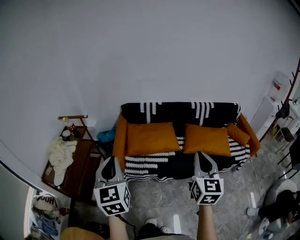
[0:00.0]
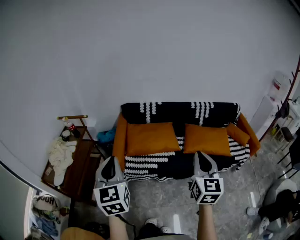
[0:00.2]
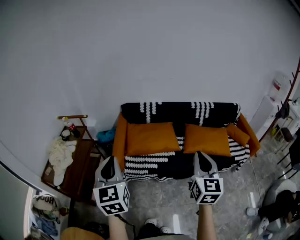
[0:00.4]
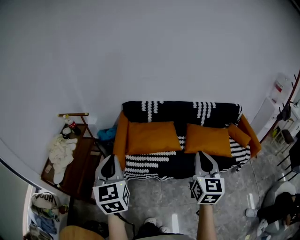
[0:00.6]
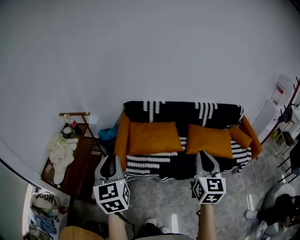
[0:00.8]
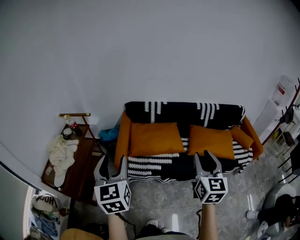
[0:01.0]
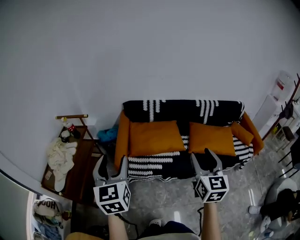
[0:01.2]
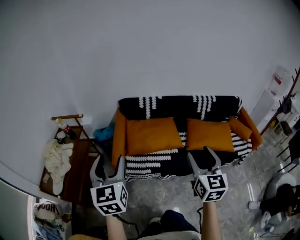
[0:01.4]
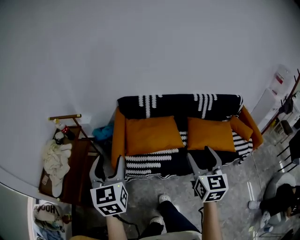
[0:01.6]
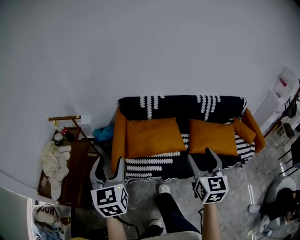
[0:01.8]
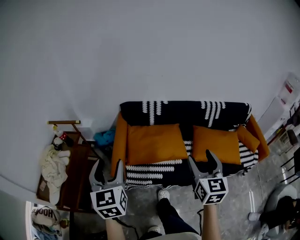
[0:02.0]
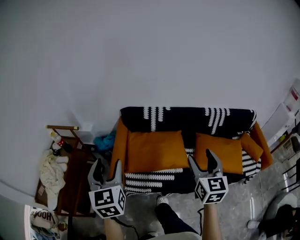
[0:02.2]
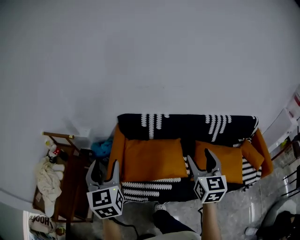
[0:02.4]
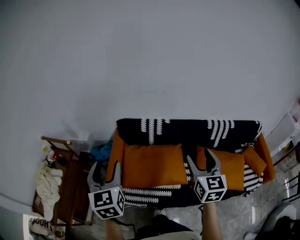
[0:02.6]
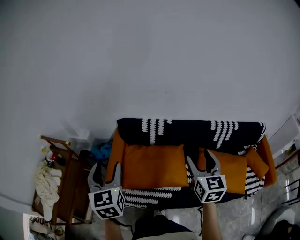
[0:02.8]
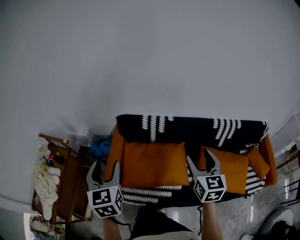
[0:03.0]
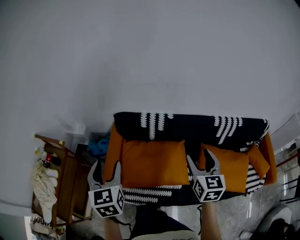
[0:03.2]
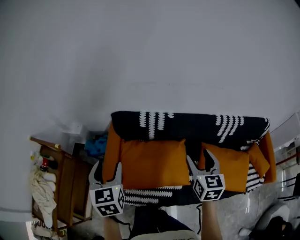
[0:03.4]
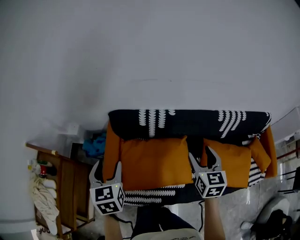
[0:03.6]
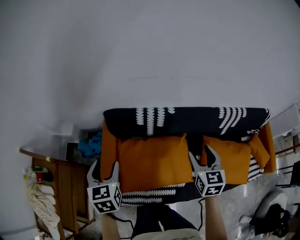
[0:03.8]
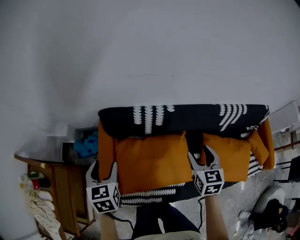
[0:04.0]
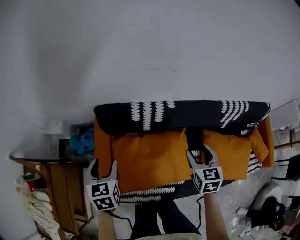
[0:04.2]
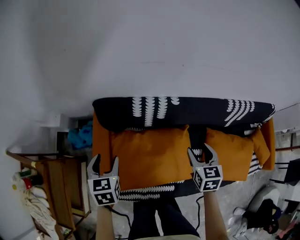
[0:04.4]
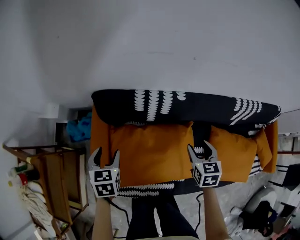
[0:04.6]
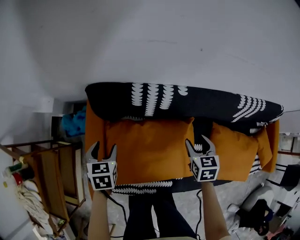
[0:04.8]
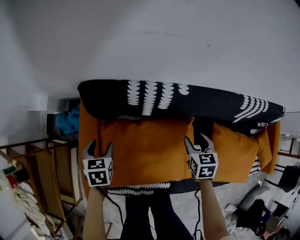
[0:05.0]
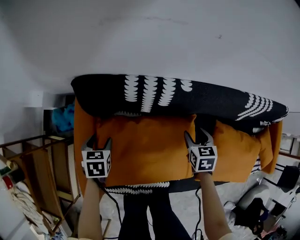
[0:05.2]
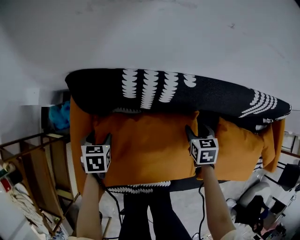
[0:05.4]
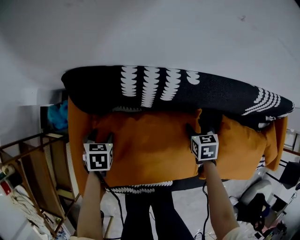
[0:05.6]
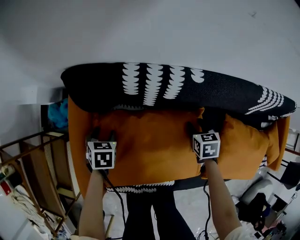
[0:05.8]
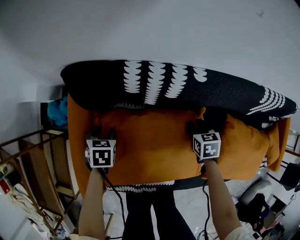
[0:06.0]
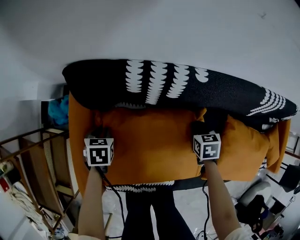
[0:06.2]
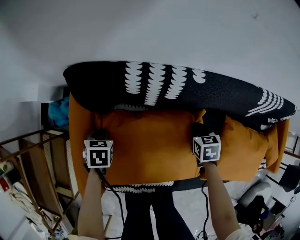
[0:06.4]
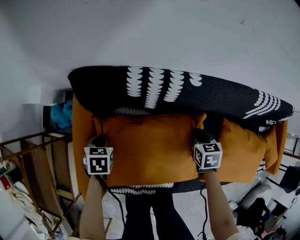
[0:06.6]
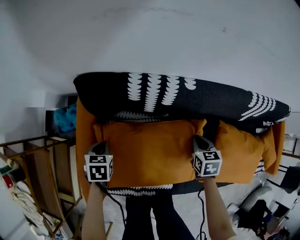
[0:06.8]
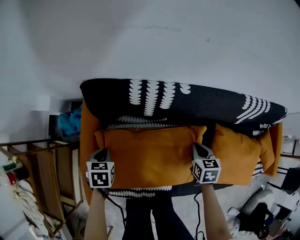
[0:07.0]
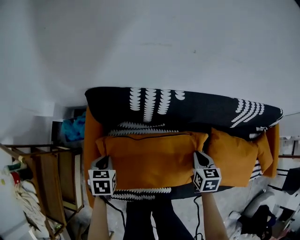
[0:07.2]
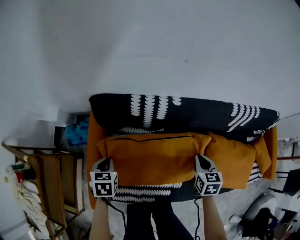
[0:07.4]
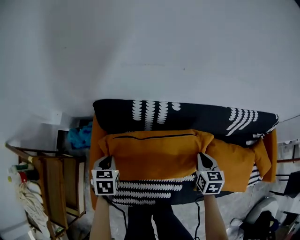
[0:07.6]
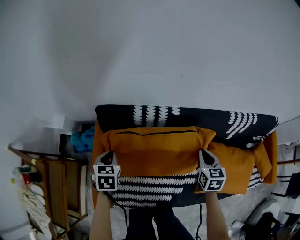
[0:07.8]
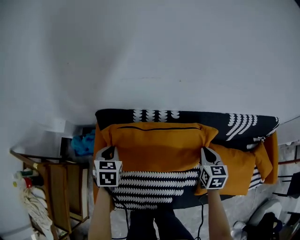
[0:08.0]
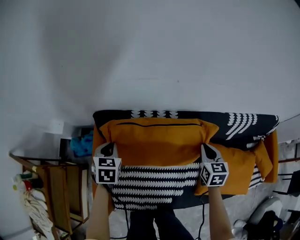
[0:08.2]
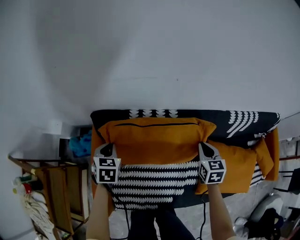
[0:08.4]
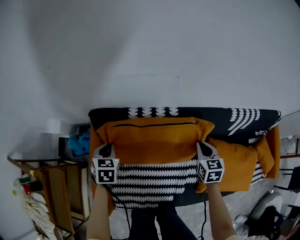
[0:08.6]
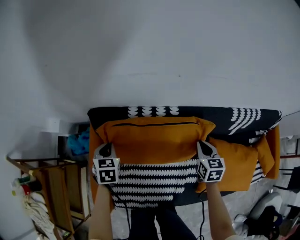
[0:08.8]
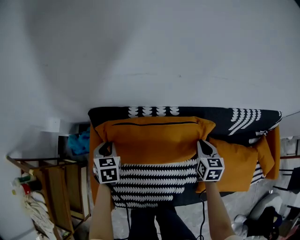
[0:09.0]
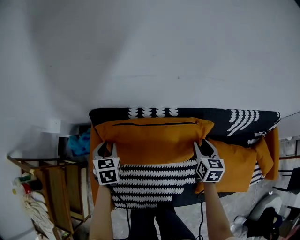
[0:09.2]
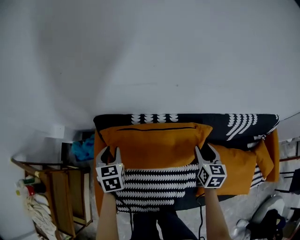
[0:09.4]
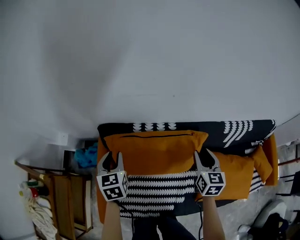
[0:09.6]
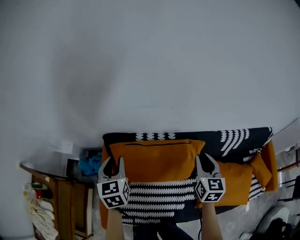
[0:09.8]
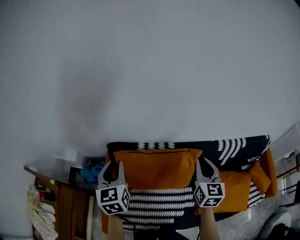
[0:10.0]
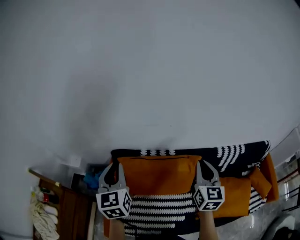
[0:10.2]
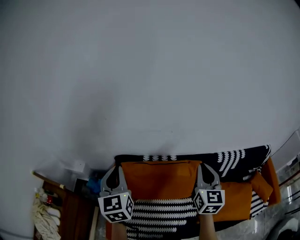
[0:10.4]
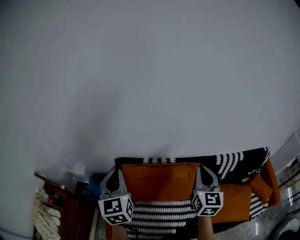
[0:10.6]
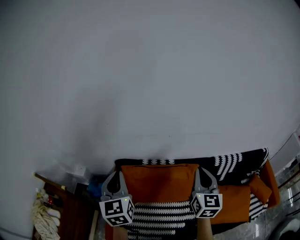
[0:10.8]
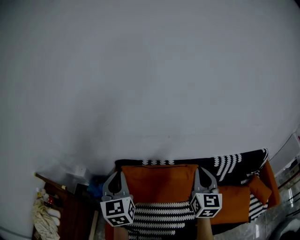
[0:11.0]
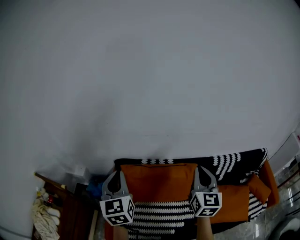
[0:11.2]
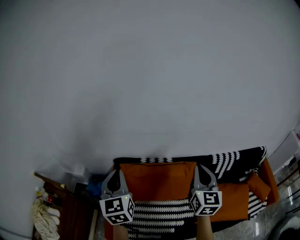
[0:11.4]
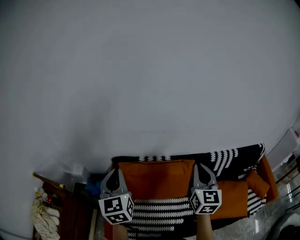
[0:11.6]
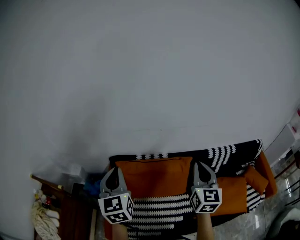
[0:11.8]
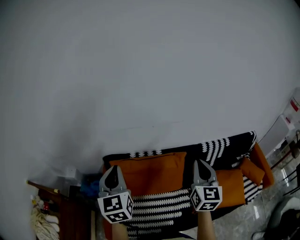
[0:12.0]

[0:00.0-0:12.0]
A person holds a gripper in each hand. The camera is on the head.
0:00.0 to 0:01.6: The two grippers go some 10 cm forward. The right gripper opens up; the left gripper opens up.
0:01.6 to 0:03.0: Both grippers move forward, about 35 cm.
0:03.0 to 0:04.4: Both grippers move downward and forward, roughly 35 cm. The left gripper rotates about 30 degrees, while the right gripper swivels some 30 degrees.
0:04.4 to 0:06.0: The grippers both shift downward by some 30 cm. The right gripper rotates approximately 20 degrees, and closes its fingers; the left gripper rotates roughly 20 degrees.
0:06.0 to 0:07.6: Both grippers move upward, some 25 cm. The left gripper closes up. The right gripper swivels some 20 degrees, and closes.
0:07.6 to 0:09.0: Both grippers move forward, roughly 10 cm.
0:09.0 to 0:10.4: The two grippers go about 35 cm upward. The right gripper angles its fingers upward, by about 30 degrees, and opens, then closes again. Meanwhile the left gripper points its fingers some 40 degrees further upward.
0:10.4 to 0:12.0: The left gripper moves roughly 5 cm. Meanwhile the right gripper heads backward, covering roughly 5 cm.

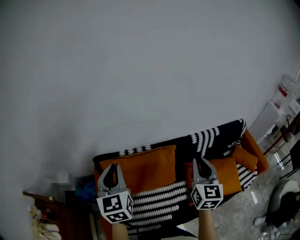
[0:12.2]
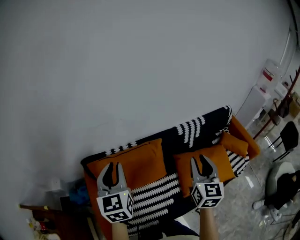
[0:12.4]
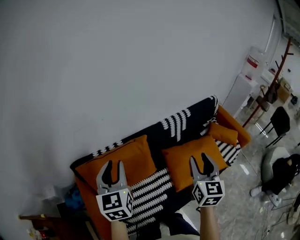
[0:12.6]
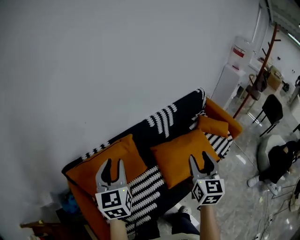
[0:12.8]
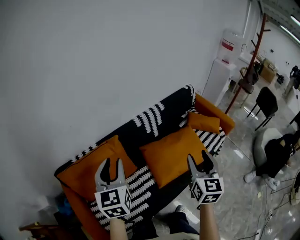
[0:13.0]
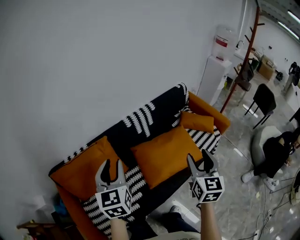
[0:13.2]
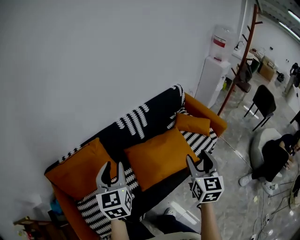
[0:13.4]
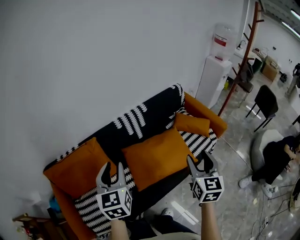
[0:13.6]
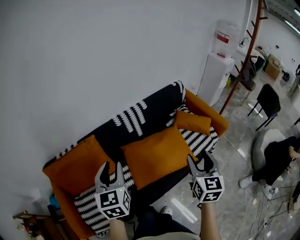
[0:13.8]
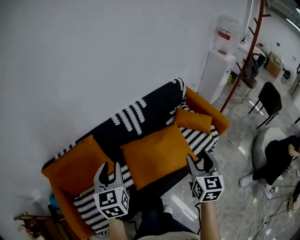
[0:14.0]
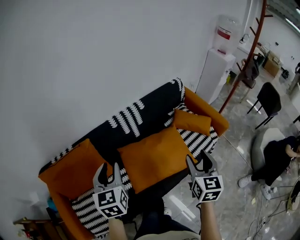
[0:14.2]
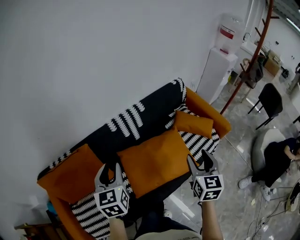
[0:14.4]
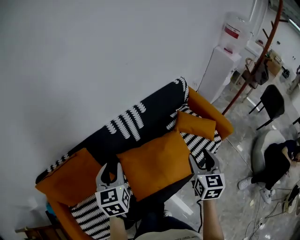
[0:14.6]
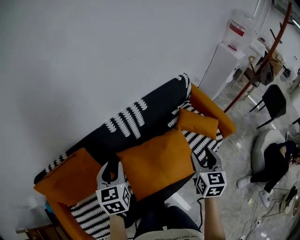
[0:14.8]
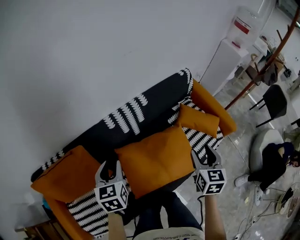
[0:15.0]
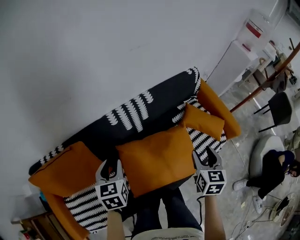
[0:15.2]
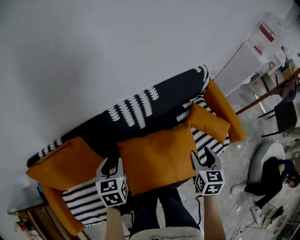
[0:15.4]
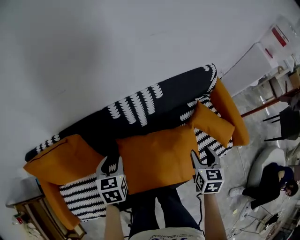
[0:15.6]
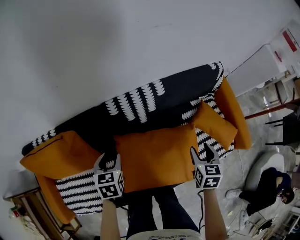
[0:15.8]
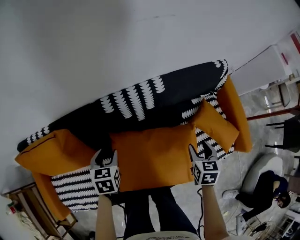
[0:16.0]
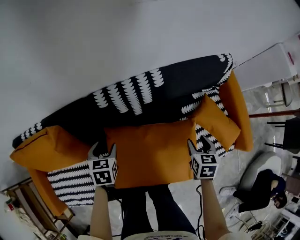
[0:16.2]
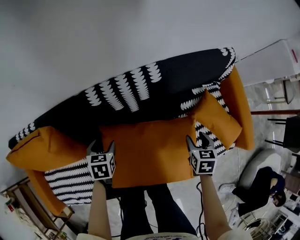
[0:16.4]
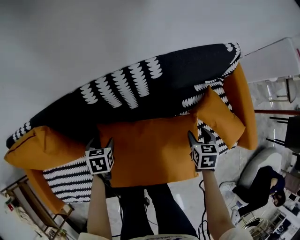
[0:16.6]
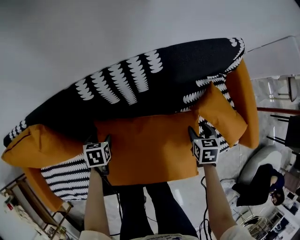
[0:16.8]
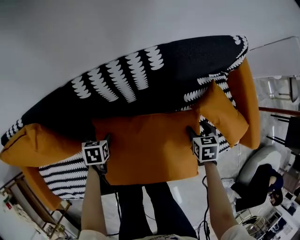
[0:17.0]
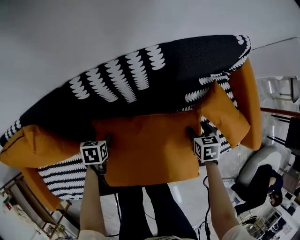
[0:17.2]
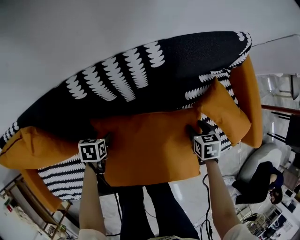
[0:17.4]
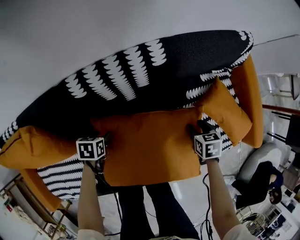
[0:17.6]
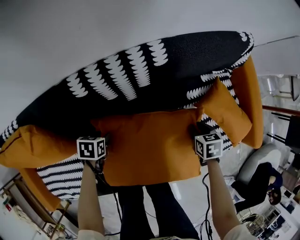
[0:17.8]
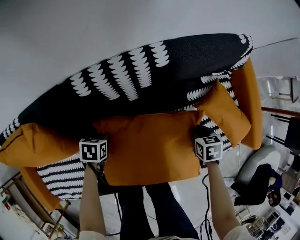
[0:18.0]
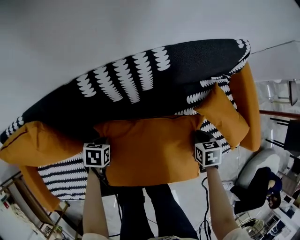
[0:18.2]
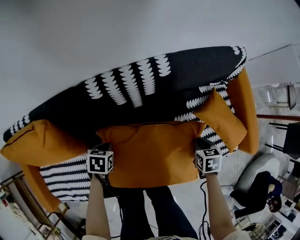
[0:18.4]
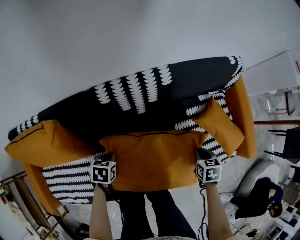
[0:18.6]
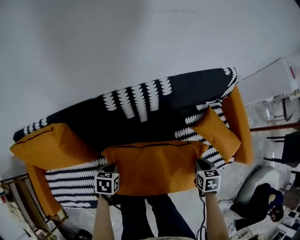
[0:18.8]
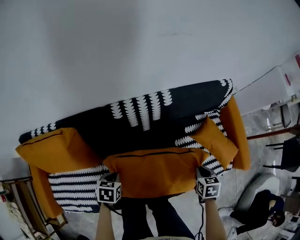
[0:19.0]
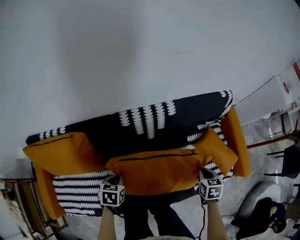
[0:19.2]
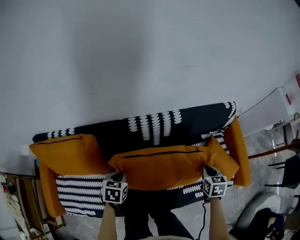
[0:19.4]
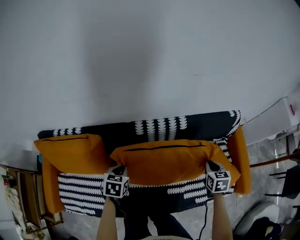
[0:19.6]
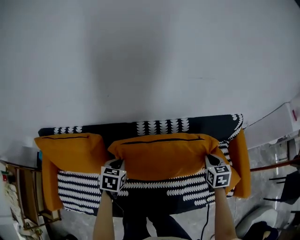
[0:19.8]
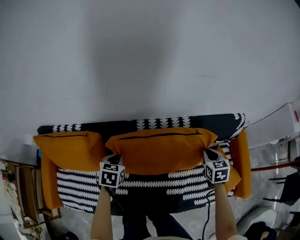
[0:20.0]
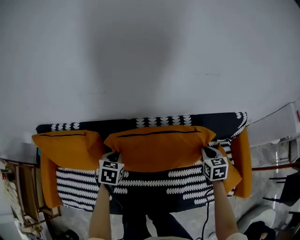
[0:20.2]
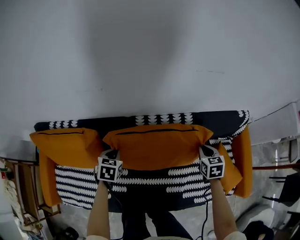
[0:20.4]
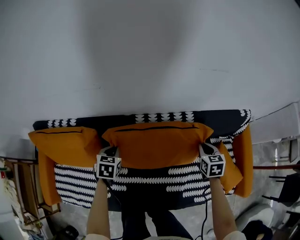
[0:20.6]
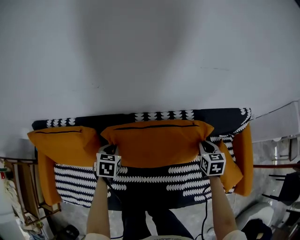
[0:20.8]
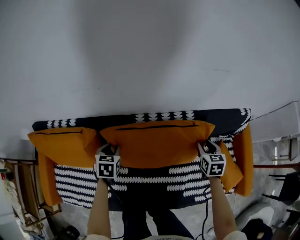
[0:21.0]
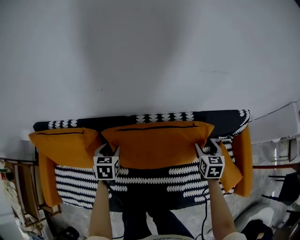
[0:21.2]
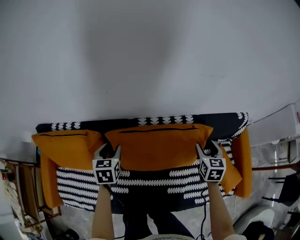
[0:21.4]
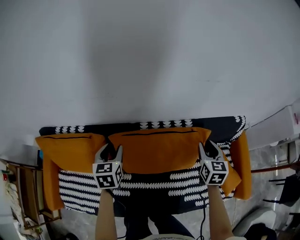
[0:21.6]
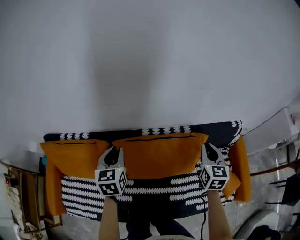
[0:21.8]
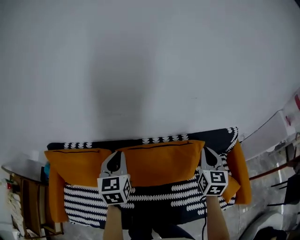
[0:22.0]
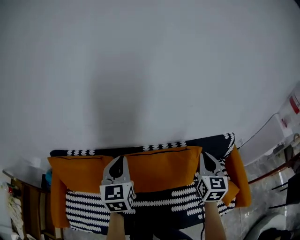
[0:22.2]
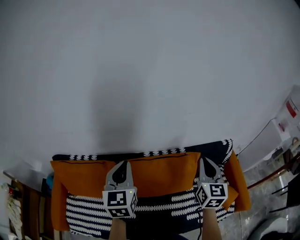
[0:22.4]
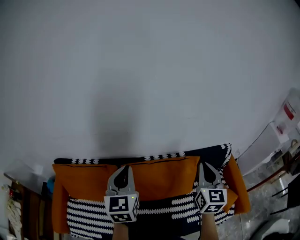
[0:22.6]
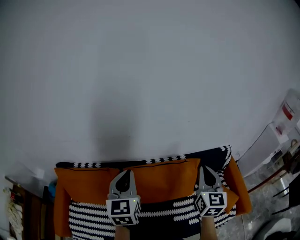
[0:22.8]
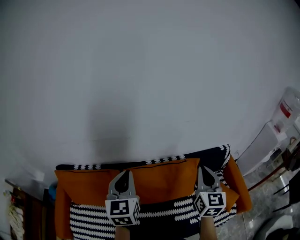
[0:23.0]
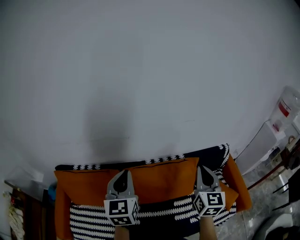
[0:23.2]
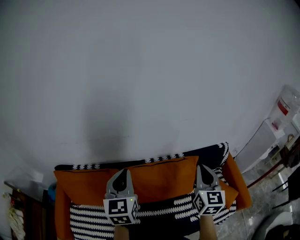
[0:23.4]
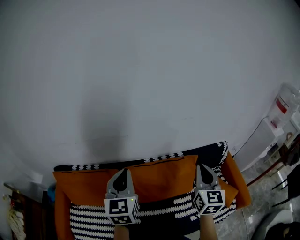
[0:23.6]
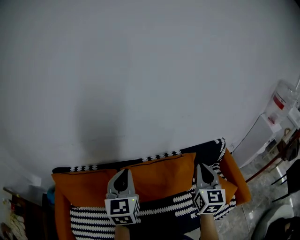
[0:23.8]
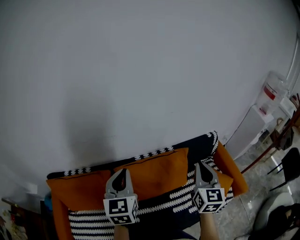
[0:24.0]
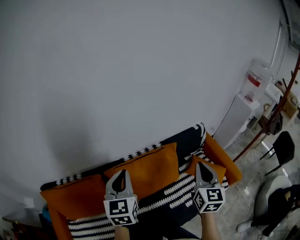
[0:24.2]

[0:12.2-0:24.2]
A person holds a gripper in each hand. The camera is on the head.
0:12.2 to 0:13.8: Both grippers are carried to the right, about 50 cm. The right gripper turns by roughly 20 degrees, and opens its fingers. Meanwhile the left gripper turns by roughly 20 degrees.
0:13.8 to 0:15.2: The two grippers go about 25 cm forward and downward. The left gripper turns by roughly 20 degrees.
0:15.2 to 0:16.6: The right gripper shifts some 35 cm downward and forward, and changes its angle by about 30 degrees; the left gripper moves downward, about 30 cm, changes its angle by some 30 degrees, and opens.
0:16.6 to 0:18.2: The left gripper shifts roughly 5 cm downward, and closes. Meanwhile the right gripper moves approximately 5 cm, and closes its fingers.
0:18.2 to 0:19.8: The two grippers go some 25 cm upward. The left gripper turns by roughly 30 degrees, while the right gripper turns by about 30 degrees.
0:19.8 to 0:21.2: Both grippers move forward, some 5 cm. The left gripper opens up, while the right gripper opens.
0:21.2 to 0:22.6: Both grippers move upward, approximately 35 cm. The right gripper tilts its fingers approximately 40 degrees upward, and closes, while the left gripper tilts its fingers about 40 degrees upward, and closes its fingers.
0:22.6 to 0:24.2: The right gripper shifts approximately 10 cm backward. The left gripper shifts by approximately 5 cm.
